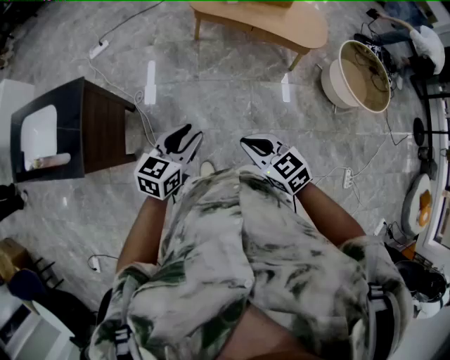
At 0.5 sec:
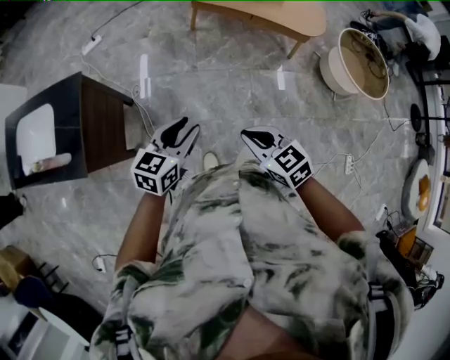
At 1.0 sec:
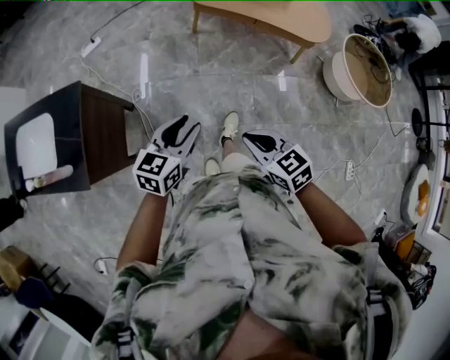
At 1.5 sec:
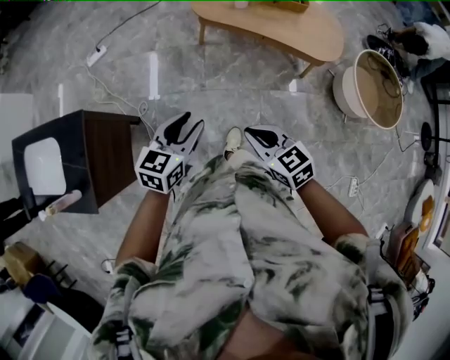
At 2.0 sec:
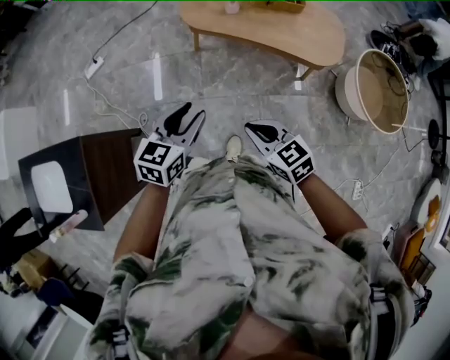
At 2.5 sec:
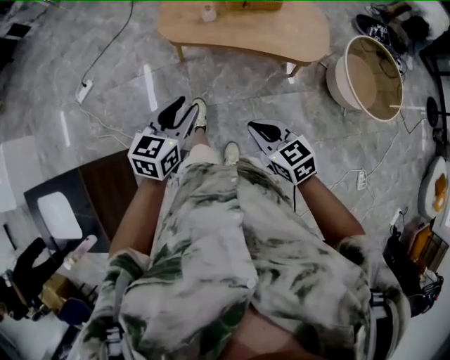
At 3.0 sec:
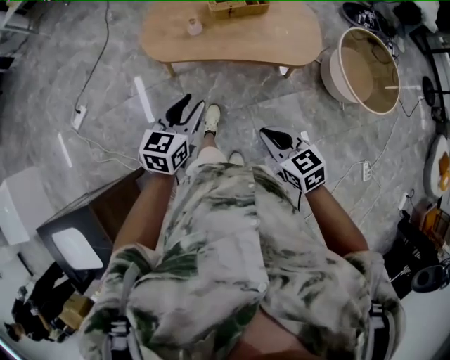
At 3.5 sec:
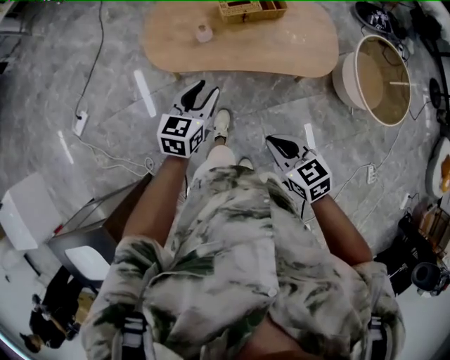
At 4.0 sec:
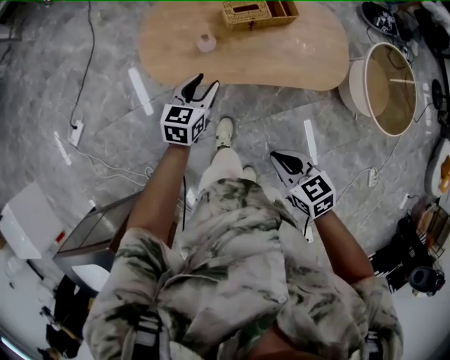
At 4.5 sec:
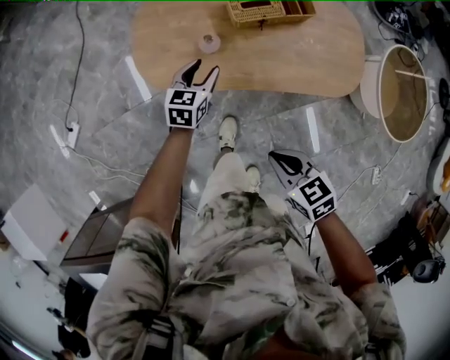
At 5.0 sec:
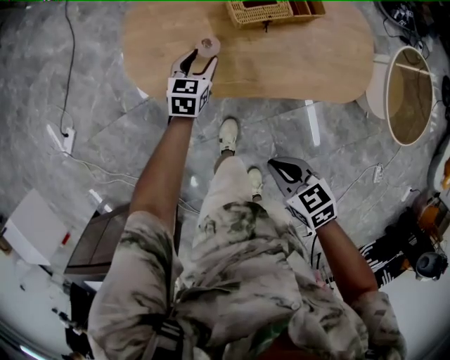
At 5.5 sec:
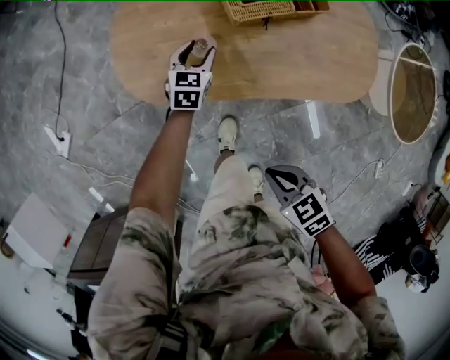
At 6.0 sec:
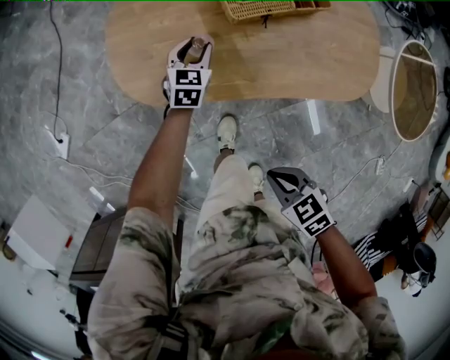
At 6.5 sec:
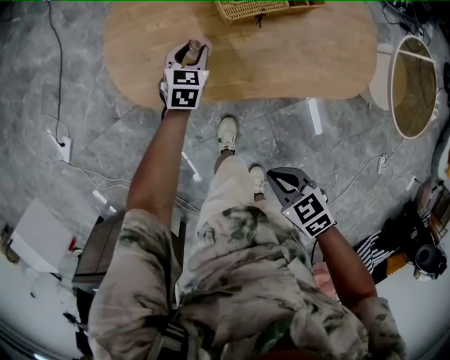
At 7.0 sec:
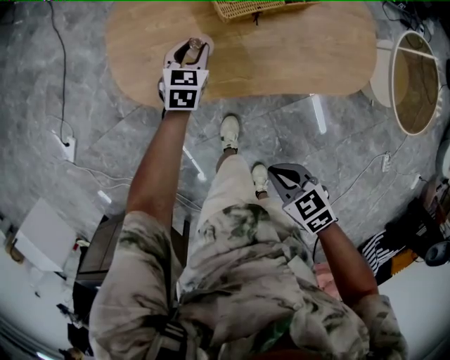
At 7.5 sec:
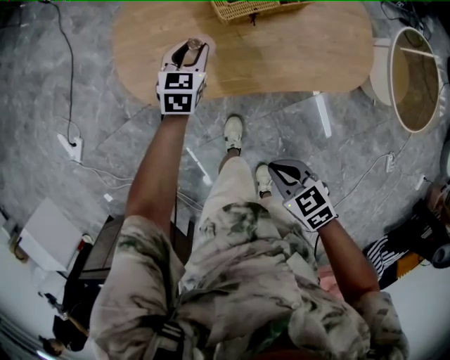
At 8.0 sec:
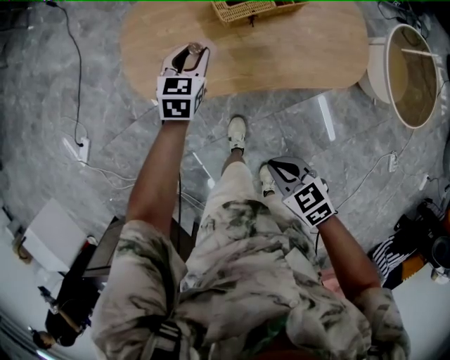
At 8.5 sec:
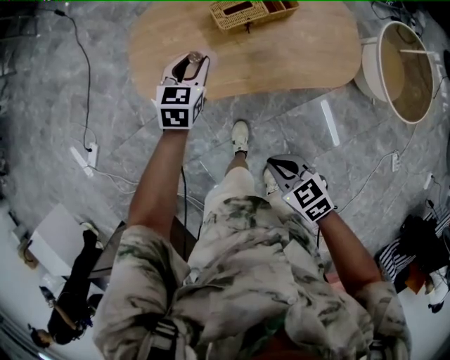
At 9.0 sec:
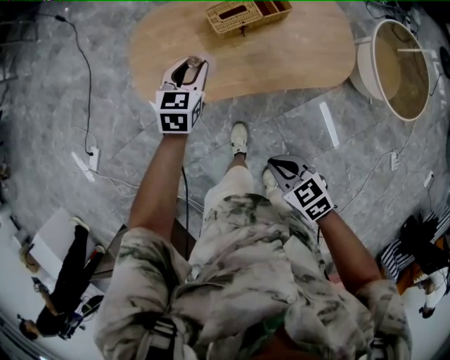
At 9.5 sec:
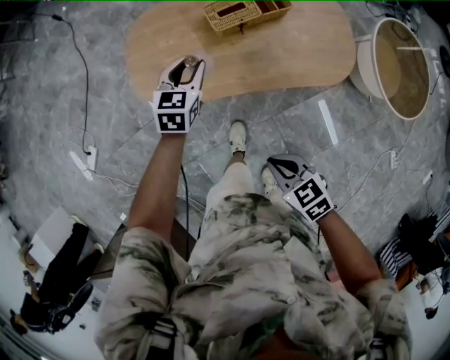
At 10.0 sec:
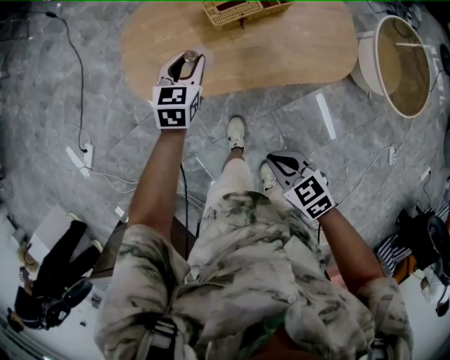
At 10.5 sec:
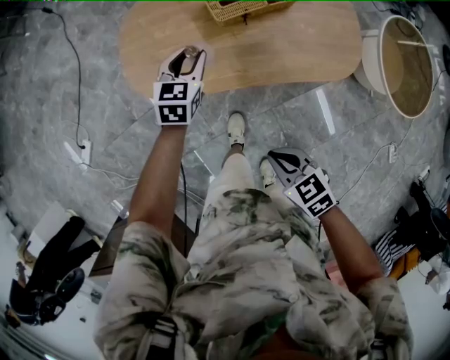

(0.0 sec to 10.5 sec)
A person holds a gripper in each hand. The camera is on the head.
0.0 sec - 2.0 sec: The grippers both shift forward by roughly 35 cm.
2.0 sec - 4.0 sec: The right gripper shifts some 30 cm forward, and rotates about 30 degrees; the left gripper travels forward and downward by about 60 cm.
4.0 sec - 6.5 sec: The right gripper shifts approximately 20 cm downward and forward. The left gripper goes approximately 35 cm downward and forward.
6.5 sec - 8.5 sec: The right gripper heads upward, covering some 10 cm, while the left gripper shifts some 20 cm upward.
8.5 sec - 10.5 sec: There are only small adjustments of the grippers.

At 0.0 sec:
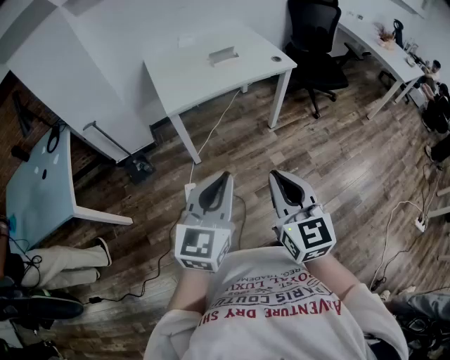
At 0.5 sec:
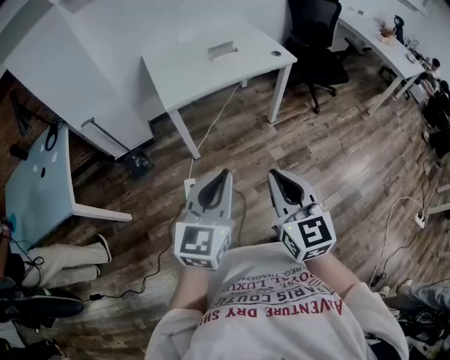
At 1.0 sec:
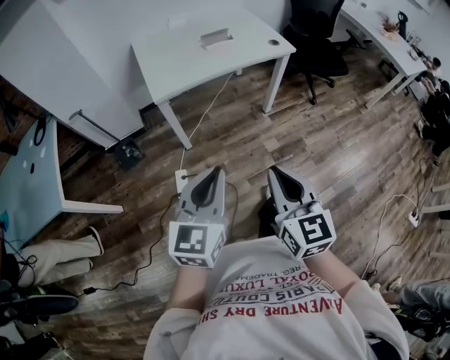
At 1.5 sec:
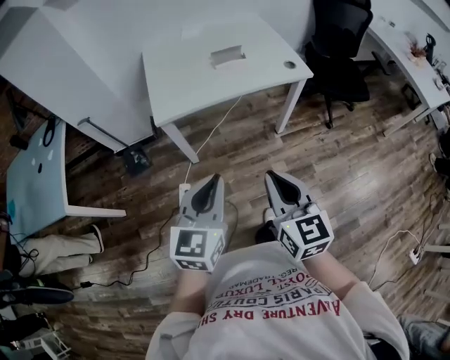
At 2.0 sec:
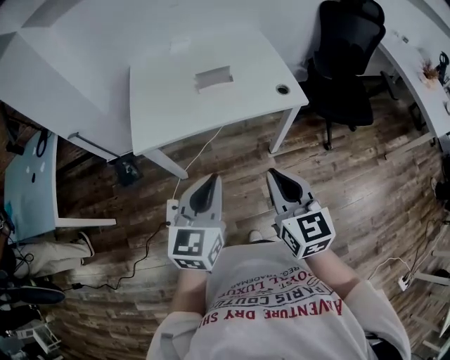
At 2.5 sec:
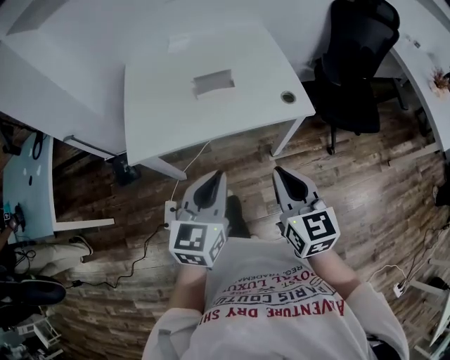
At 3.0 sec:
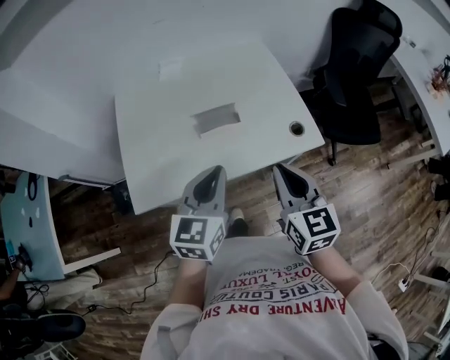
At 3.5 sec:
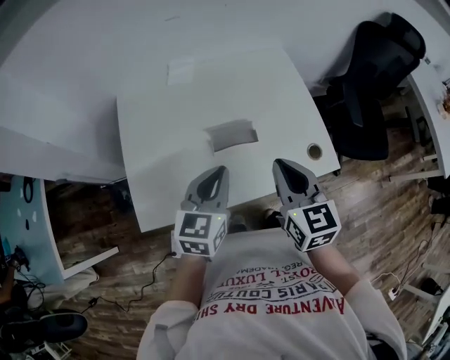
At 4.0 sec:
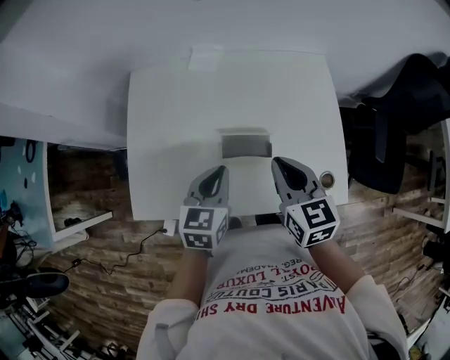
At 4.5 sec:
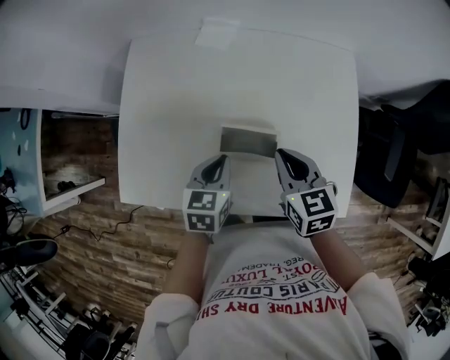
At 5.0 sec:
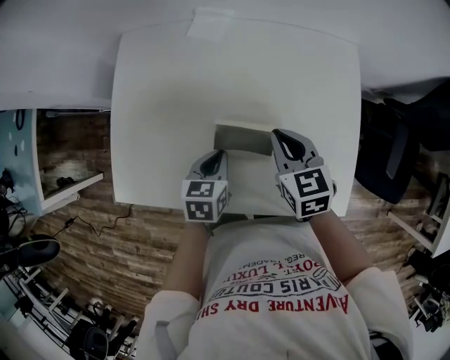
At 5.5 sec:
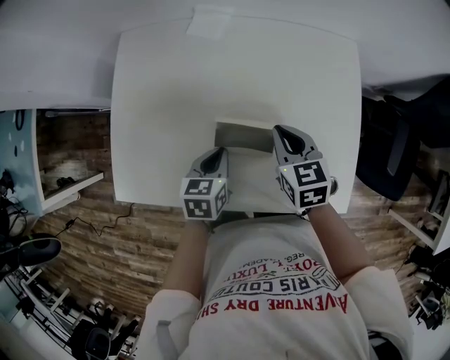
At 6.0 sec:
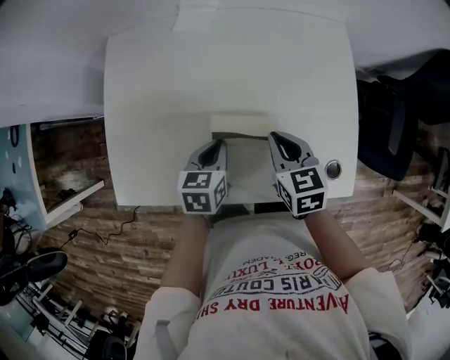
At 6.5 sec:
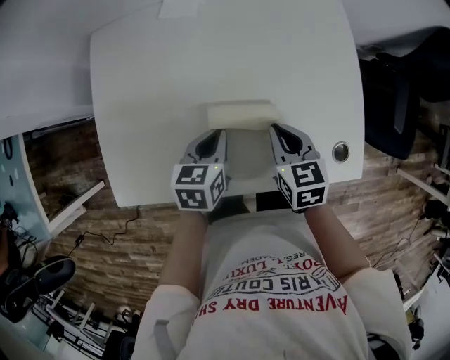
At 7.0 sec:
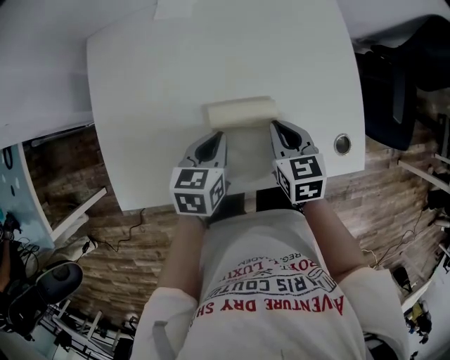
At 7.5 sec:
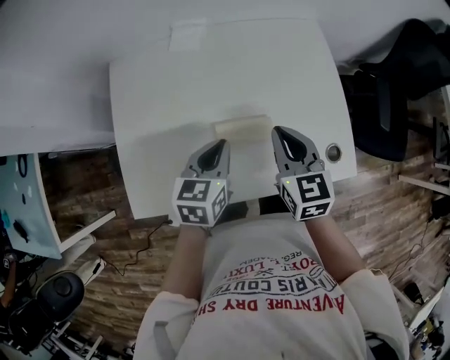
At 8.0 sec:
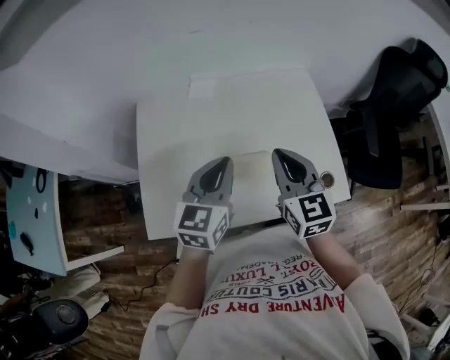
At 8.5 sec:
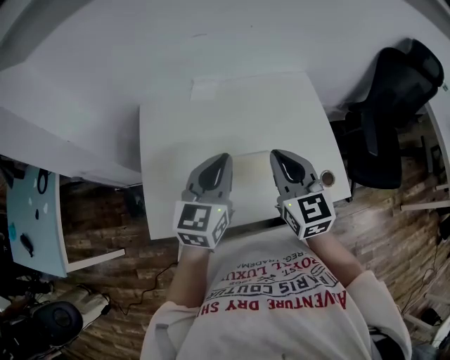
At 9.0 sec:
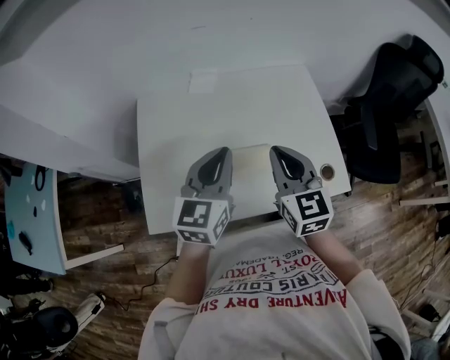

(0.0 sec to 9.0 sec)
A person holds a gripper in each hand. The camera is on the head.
0.0 sec - 2.0 sec: The grippers both shift forward and to the right by approximately 40 cm.
2.0 sec - 4.5 sec: The pair of grippers is taken forward, roughly 50 cm. The right gripper rotates some 30 degrees, while the left gripper travels downward by some 20 cm, and turns by about 30 degrees.
4.5 sec - 7.0 sec: The right gripper moves downward, about 10 cm.
7.0 sec - 9.0 sec: Both grippers travel together upward, about 25 cm. The left gripper points its fingers approximately 30 degrees further upward; the right gripper changes its angle by some 30 degrees.

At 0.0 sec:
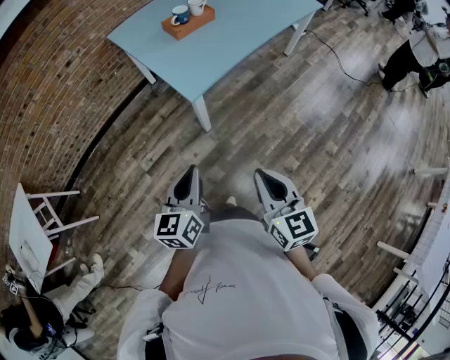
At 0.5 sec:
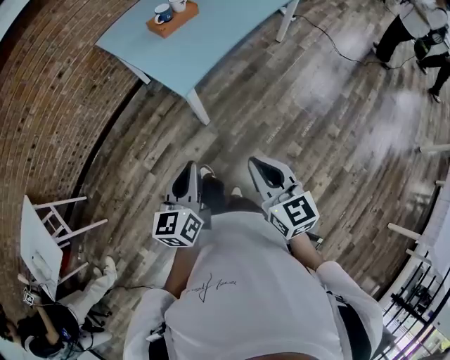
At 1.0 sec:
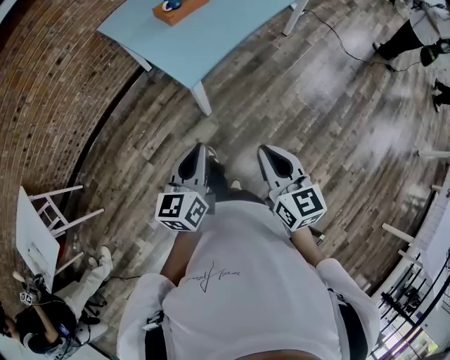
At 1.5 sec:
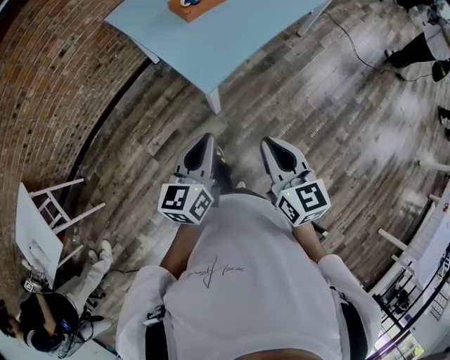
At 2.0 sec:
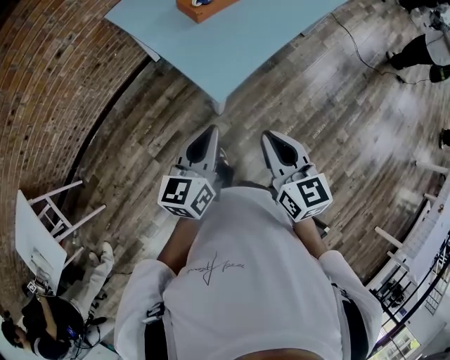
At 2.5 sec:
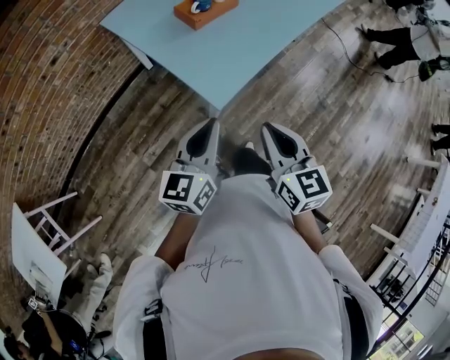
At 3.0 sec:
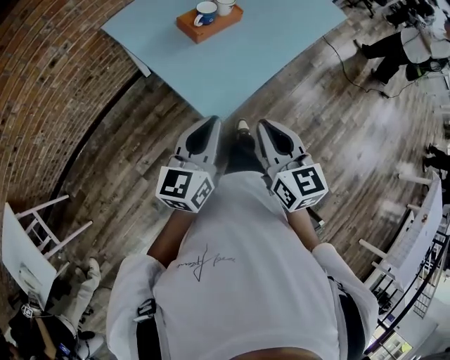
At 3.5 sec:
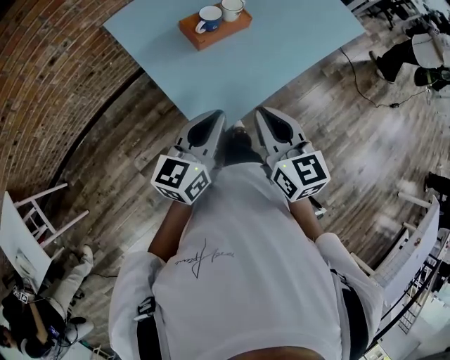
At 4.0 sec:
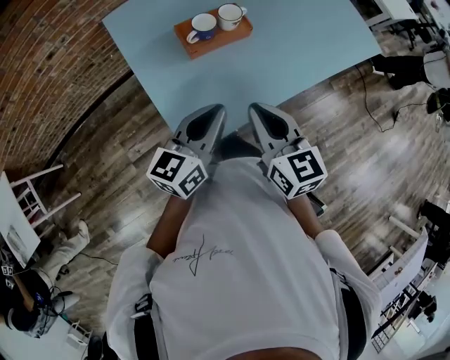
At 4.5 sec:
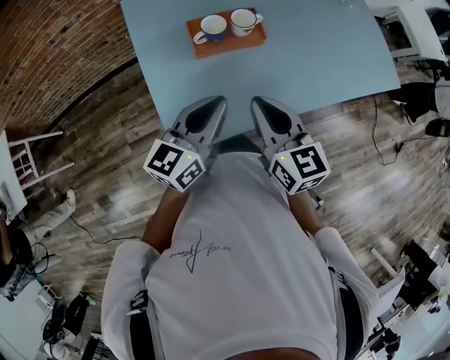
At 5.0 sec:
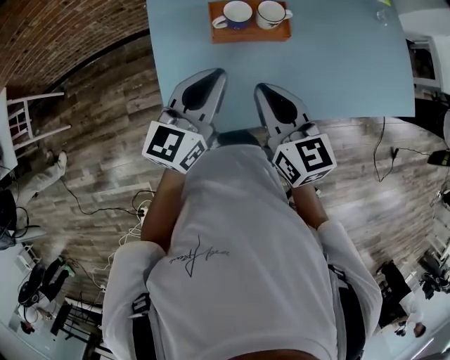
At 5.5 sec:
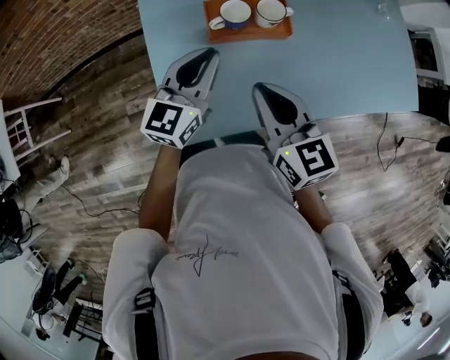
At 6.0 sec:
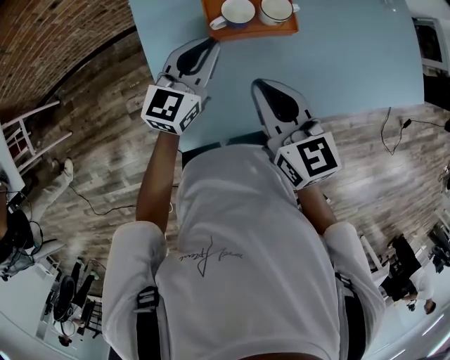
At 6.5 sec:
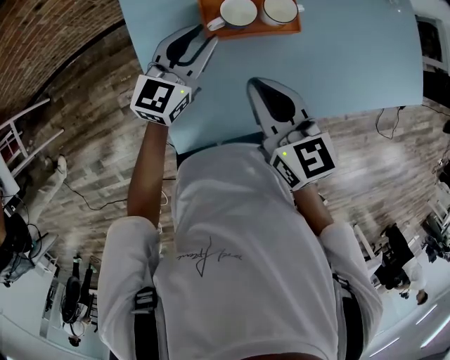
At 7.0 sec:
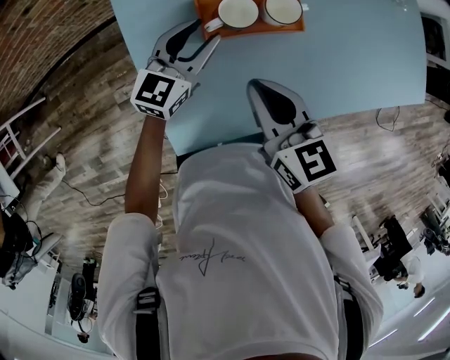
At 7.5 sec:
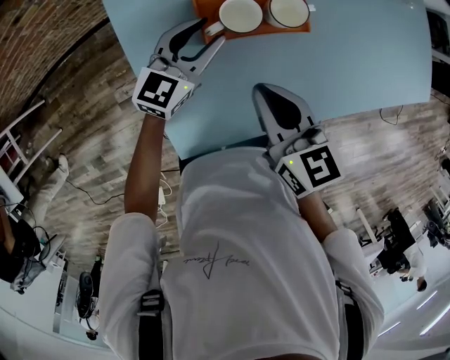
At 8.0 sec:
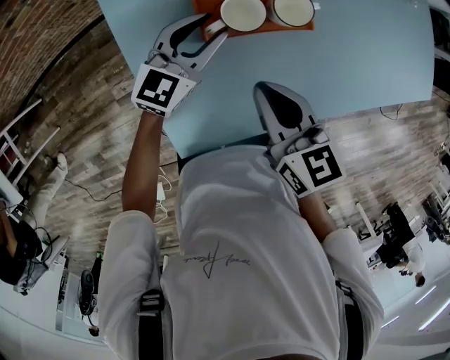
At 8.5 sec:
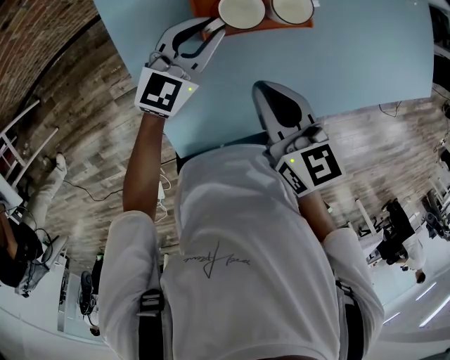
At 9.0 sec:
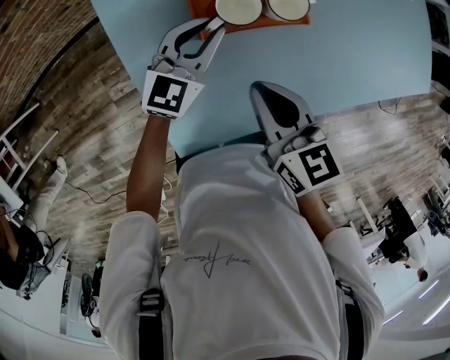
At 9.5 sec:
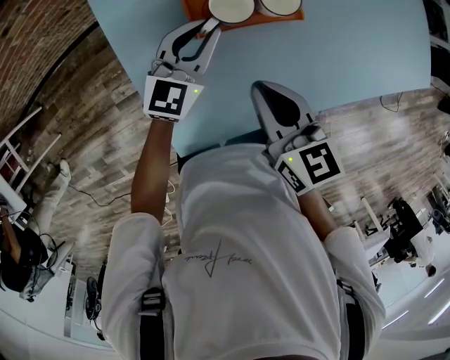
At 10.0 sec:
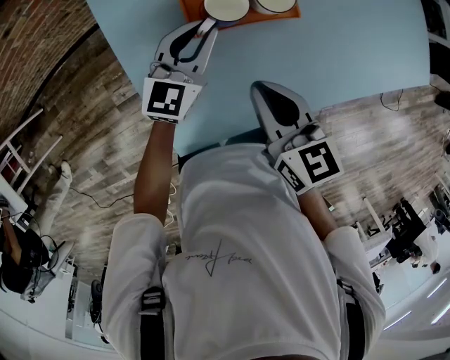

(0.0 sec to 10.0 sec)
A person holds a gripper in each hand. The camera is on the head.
0.0 sec - 2.0 sec: The left gripper goes roughly 15 cm forward. Meanwhile the right gripper is displaced forward and to the left by approximately 20 cm.
2.0 sec - 4.0 sec: The grippers both shift forward by approximately 25 cm.
4.0 sec - 6.0 sec: The right gripper heads forward, covering about 10 cm. Meanwhile the left gripper shifts approximately 20 cm forward, and changes its angle by roughly 20 degrees.
6.0 sec - 8.0 sec: The right gripper heads downward, covering approximately 5 cm. Meanwhile the left gripper moves downward and forward, some 10 cm, and opens up.
8.0 sec - 10.0 sec: The left gripper closes up.